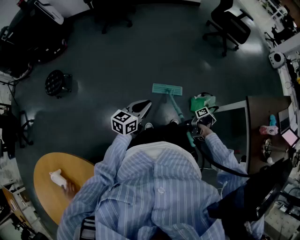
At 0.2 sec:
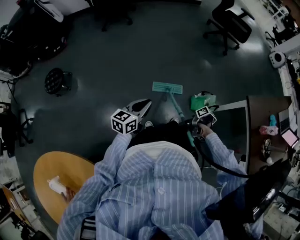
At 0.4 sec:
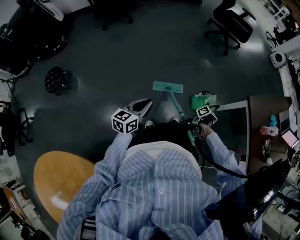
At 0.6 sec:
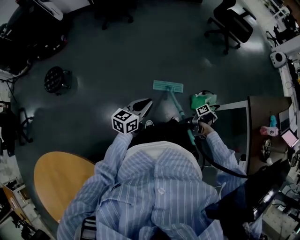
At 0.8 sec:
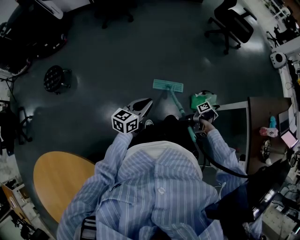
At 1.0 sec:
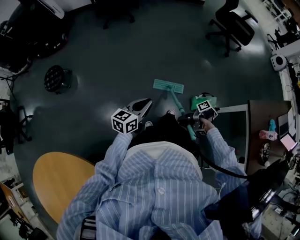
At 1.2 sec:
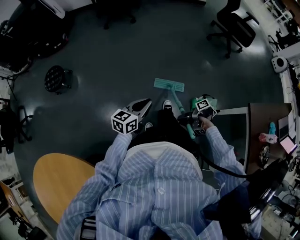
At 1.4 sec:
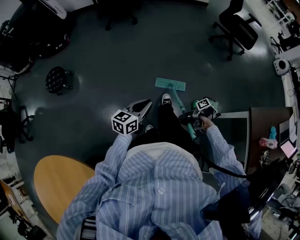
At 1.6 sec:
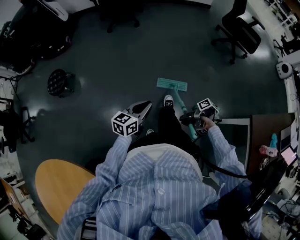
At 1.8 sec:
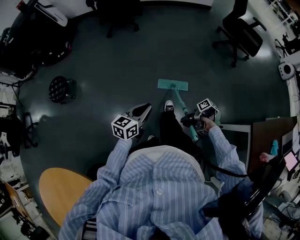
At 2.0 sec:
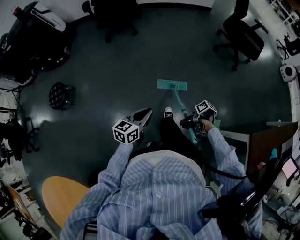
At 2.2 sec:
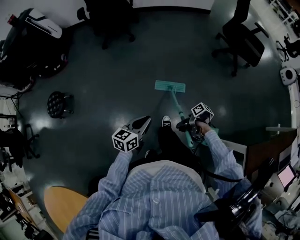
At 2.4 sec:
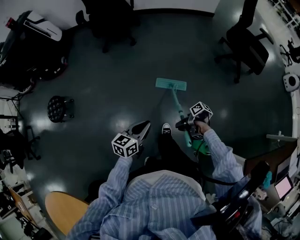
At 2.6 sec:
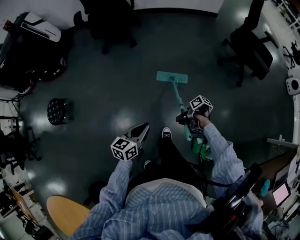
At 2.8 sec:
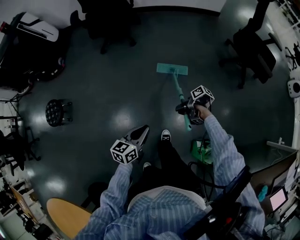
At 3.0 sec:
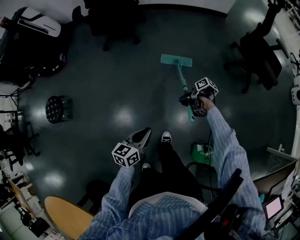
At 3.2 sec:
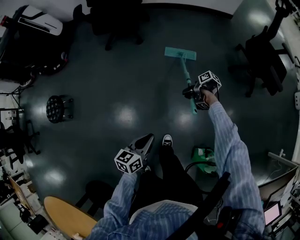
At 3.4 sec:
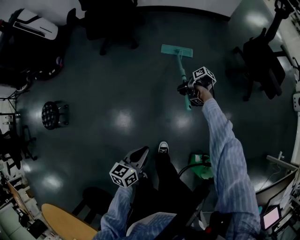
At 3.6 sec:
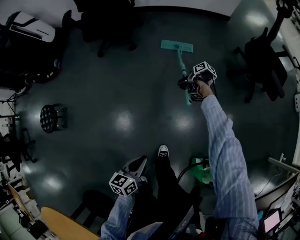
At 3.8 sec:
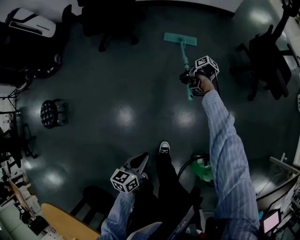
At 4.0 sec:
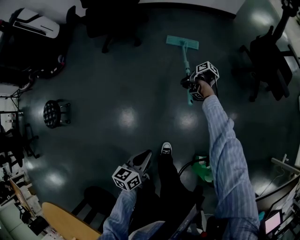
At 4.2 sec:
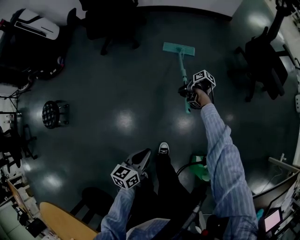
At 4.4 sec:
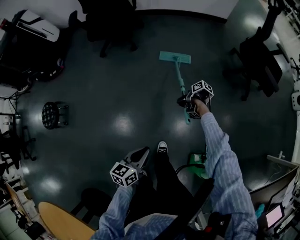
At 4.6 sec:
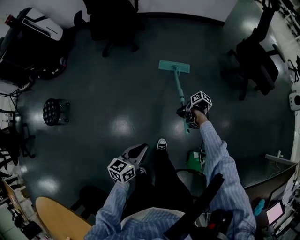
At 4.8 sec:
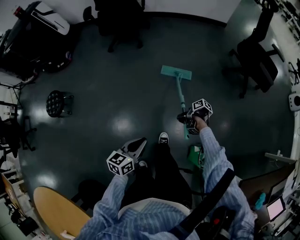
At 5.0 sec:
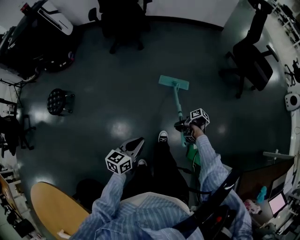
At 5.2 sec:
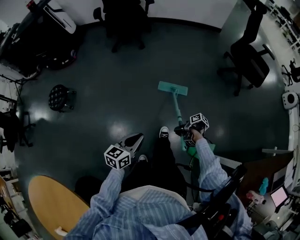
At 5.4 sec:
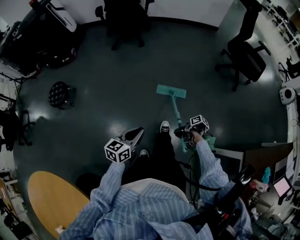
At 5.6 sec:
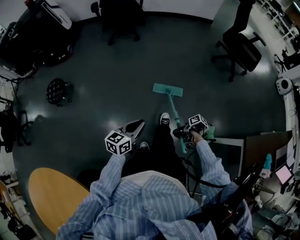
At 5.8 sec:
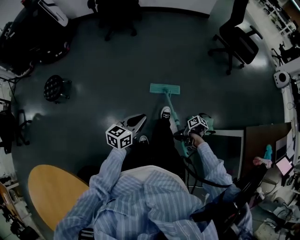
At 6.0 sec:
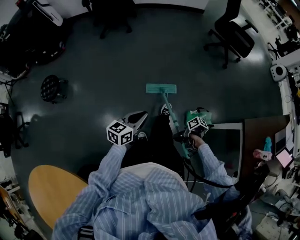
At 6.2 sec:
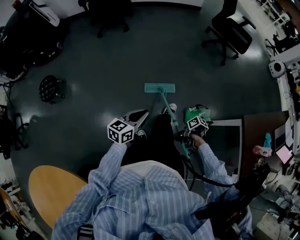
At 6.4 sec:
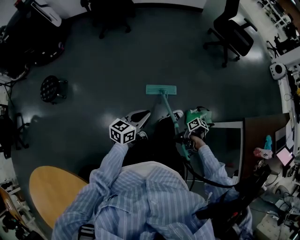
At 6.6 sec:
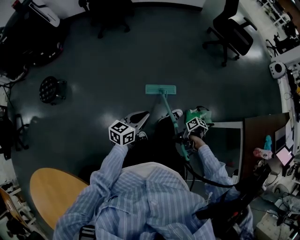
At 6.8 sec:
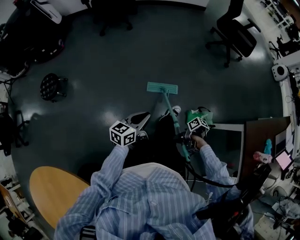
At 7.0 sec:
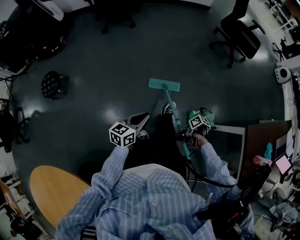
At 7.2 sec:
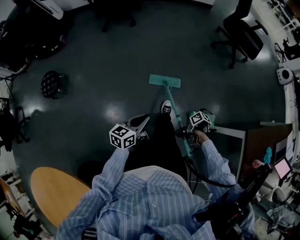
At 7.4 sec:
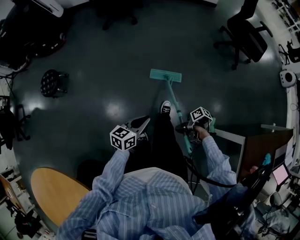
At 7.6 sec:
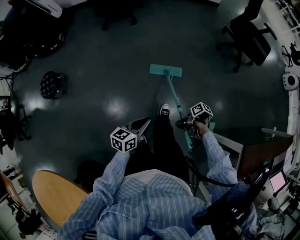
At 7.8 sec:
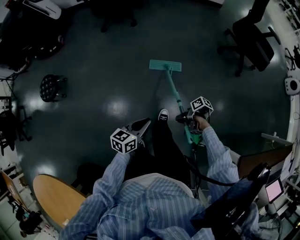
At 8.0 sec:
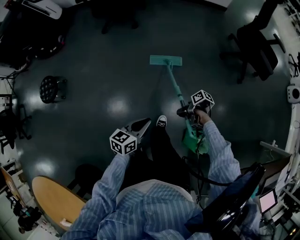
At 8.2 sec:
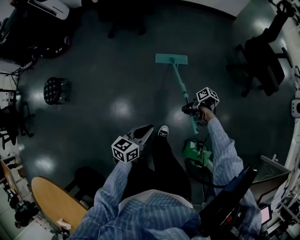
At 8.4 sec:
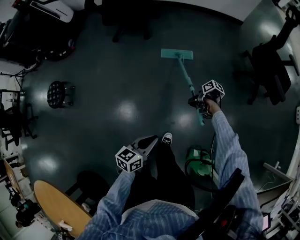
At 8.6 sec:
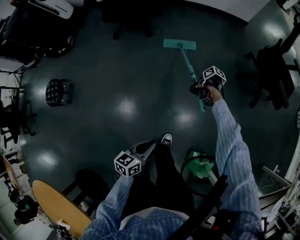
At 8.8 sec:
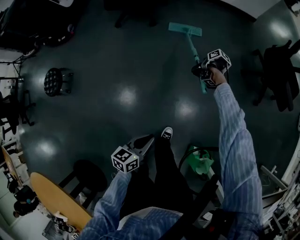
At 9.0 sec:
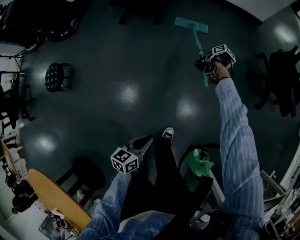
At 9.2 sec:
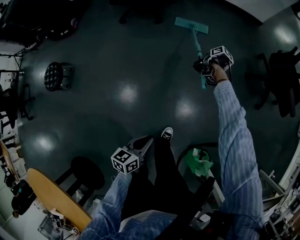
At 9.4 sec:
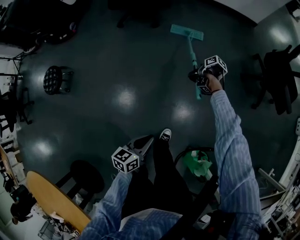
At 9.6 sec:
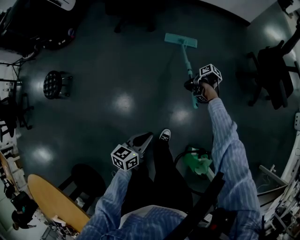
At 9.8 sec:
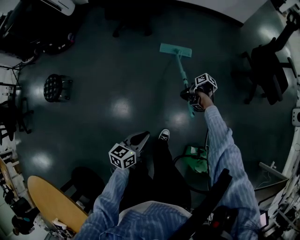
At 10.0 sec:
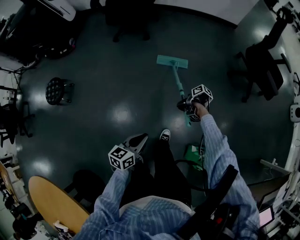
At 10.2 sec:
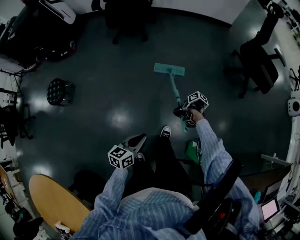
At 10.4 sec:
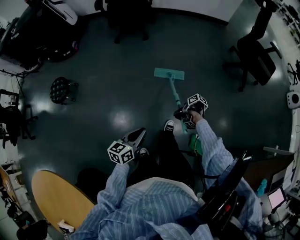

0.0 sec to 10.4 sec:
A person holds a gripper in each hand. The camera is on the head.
0.0 sec to 1.4 sec: The left gripper shifts by approximately 5 cm.
1.4 sec to 3.0 sec: The left gripper moves roughly 40 cm.
4.4 sec to 6.0 sec: The left gripper ends up roughly 35 cm from where it was.
6.0 sec to 7.4 sec: The left gripper shifts by some 10 cm.
7.4 sec to 9.0 sec: The left gripper shifts by approximately 30 cm.
9.0 sec to 10.4 sec: The left gripper ends up about 25 cm from where it was.

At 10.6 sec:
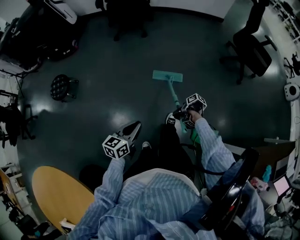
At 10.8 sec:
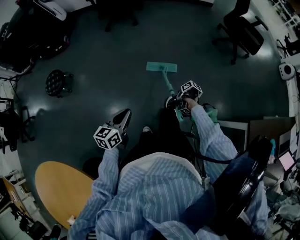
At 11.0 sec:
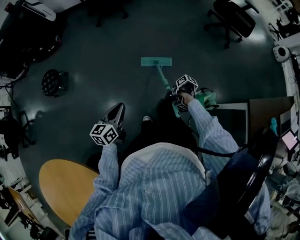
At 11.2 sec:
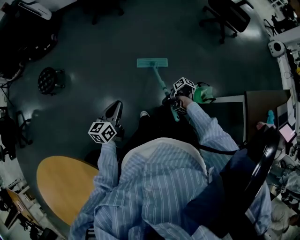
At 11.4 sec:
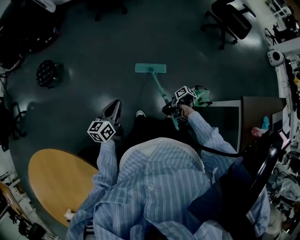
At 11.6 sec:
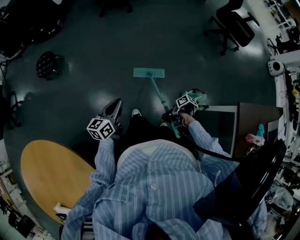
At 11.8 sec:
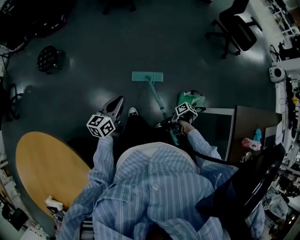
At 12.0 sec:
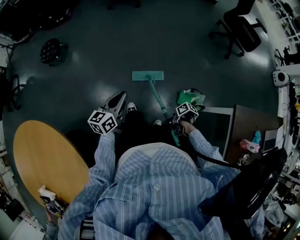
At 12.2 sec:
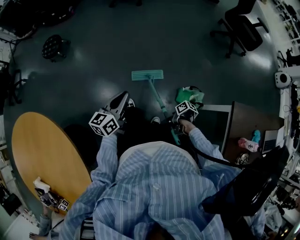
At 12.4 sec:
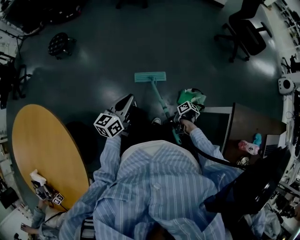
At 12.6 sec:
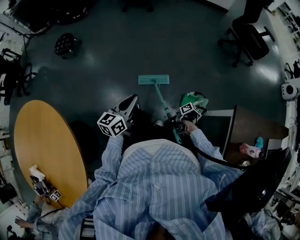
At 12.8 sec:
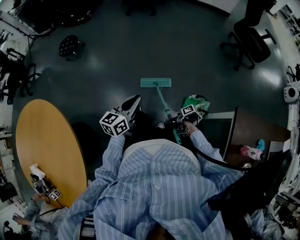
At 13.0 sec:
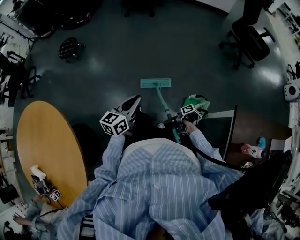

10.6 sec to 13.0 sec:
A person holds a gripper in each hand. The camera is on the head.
10.6 sec to 11.8 sec: The left gripper ends up roughly 15 cm from where it was.
11.8 sec to 13.0 sec: The left gripper moves about 20 cm.

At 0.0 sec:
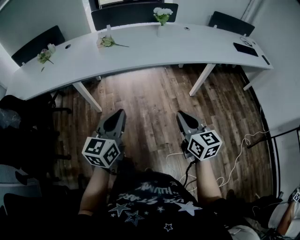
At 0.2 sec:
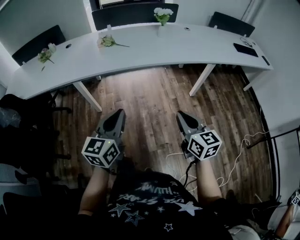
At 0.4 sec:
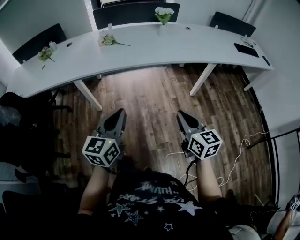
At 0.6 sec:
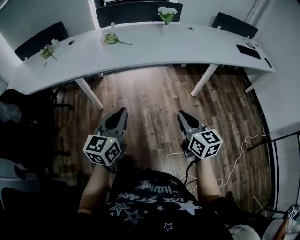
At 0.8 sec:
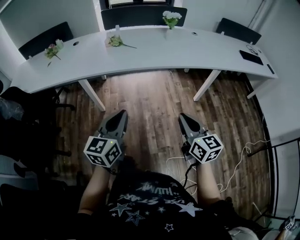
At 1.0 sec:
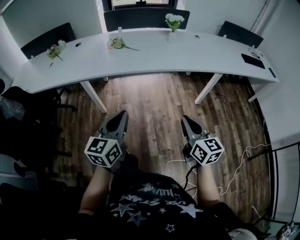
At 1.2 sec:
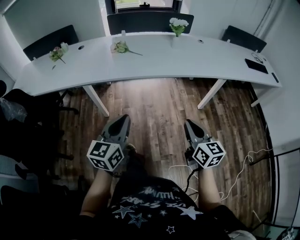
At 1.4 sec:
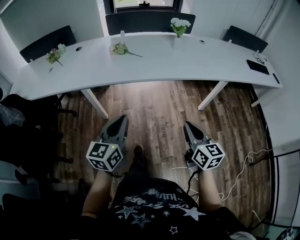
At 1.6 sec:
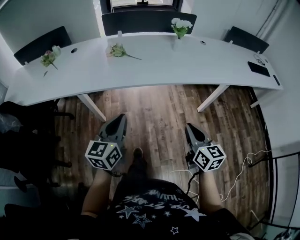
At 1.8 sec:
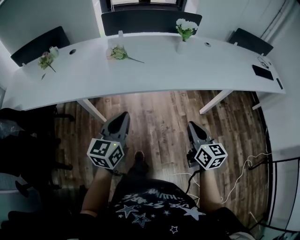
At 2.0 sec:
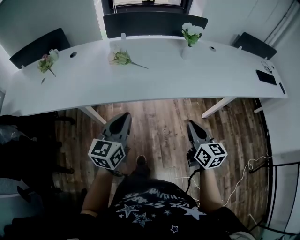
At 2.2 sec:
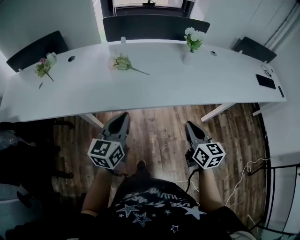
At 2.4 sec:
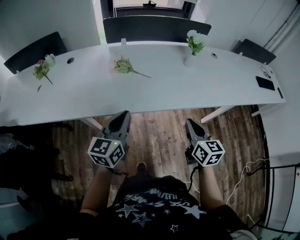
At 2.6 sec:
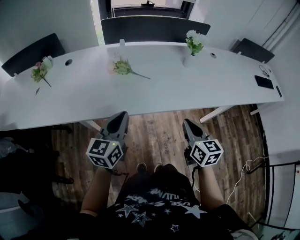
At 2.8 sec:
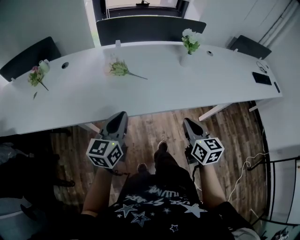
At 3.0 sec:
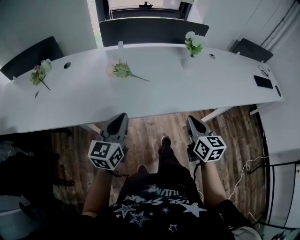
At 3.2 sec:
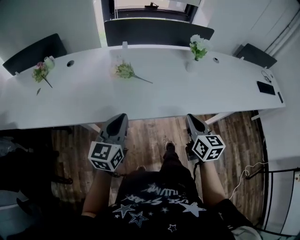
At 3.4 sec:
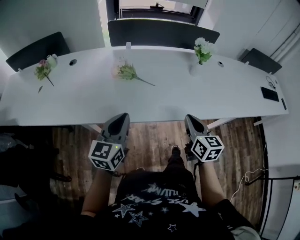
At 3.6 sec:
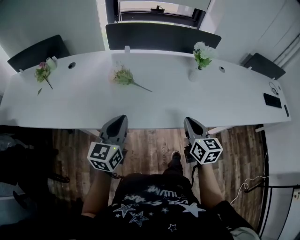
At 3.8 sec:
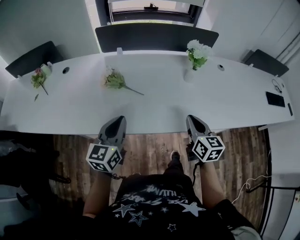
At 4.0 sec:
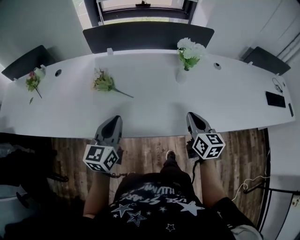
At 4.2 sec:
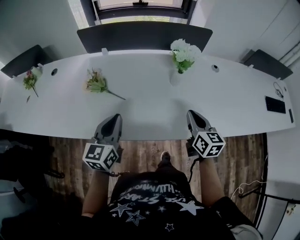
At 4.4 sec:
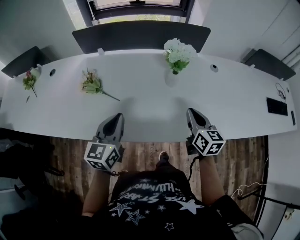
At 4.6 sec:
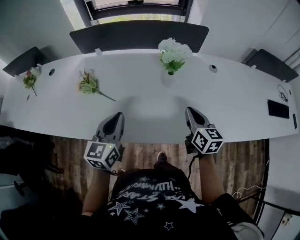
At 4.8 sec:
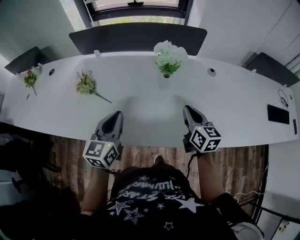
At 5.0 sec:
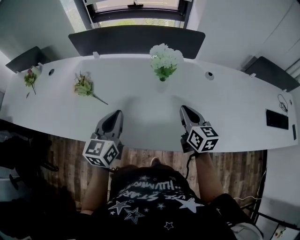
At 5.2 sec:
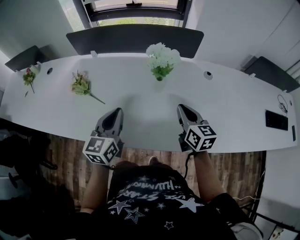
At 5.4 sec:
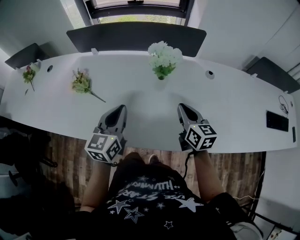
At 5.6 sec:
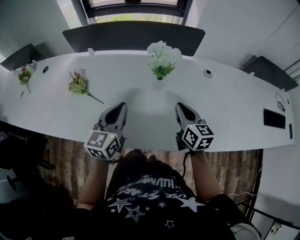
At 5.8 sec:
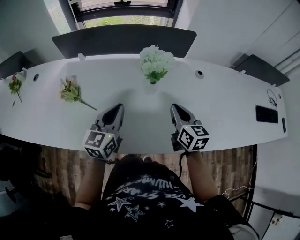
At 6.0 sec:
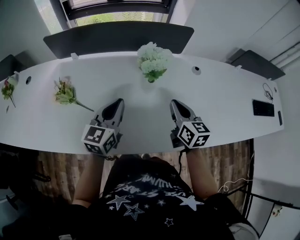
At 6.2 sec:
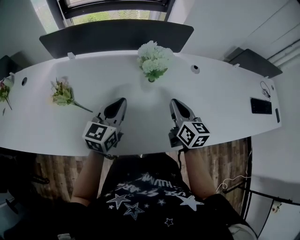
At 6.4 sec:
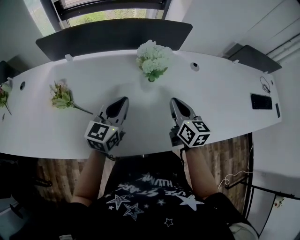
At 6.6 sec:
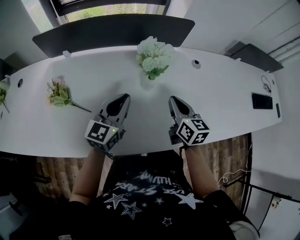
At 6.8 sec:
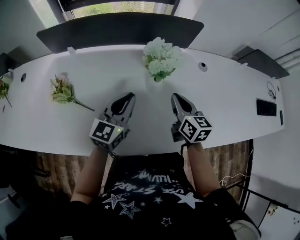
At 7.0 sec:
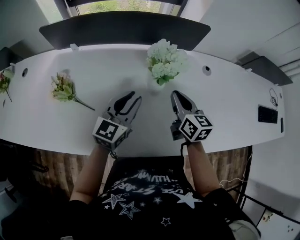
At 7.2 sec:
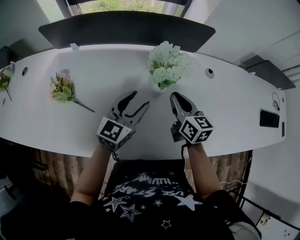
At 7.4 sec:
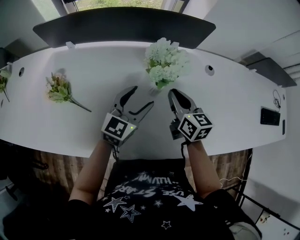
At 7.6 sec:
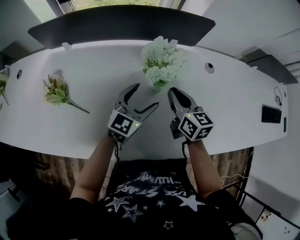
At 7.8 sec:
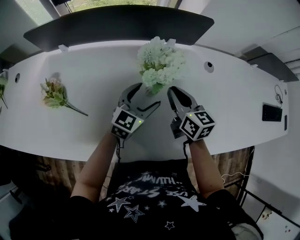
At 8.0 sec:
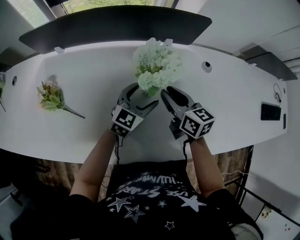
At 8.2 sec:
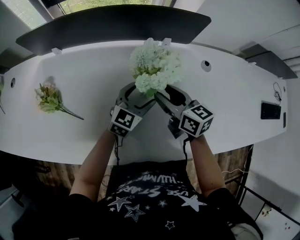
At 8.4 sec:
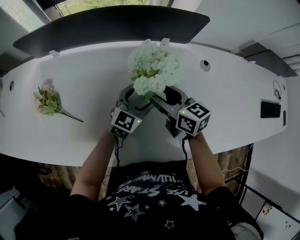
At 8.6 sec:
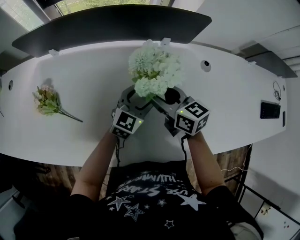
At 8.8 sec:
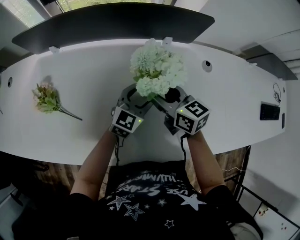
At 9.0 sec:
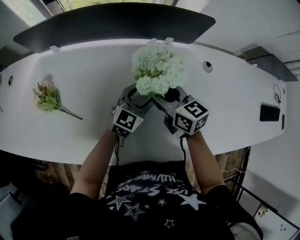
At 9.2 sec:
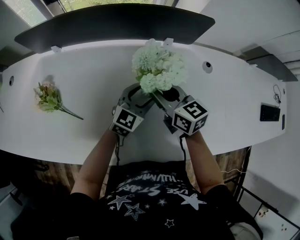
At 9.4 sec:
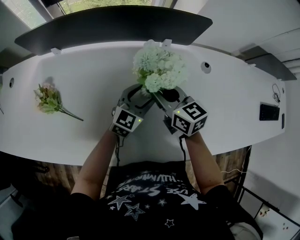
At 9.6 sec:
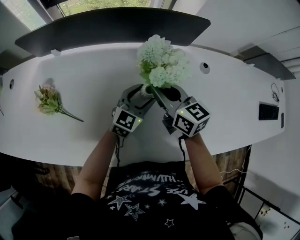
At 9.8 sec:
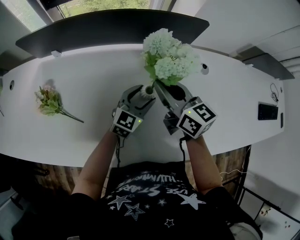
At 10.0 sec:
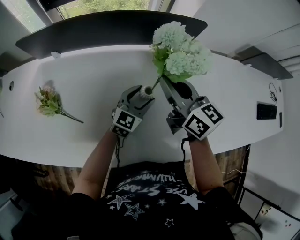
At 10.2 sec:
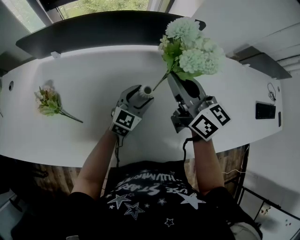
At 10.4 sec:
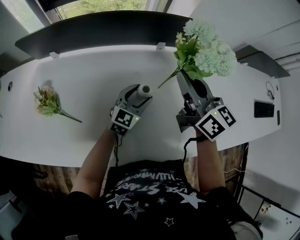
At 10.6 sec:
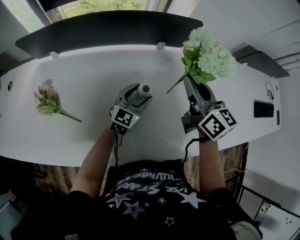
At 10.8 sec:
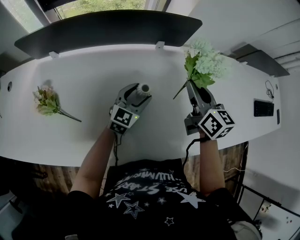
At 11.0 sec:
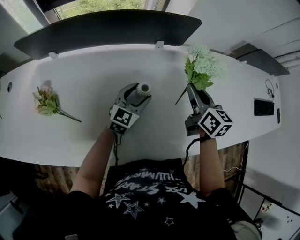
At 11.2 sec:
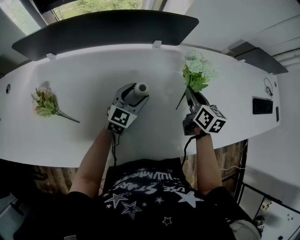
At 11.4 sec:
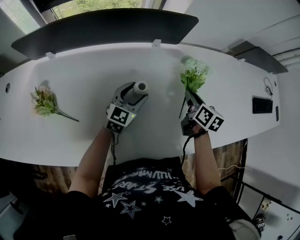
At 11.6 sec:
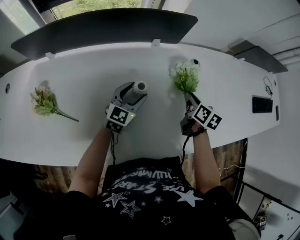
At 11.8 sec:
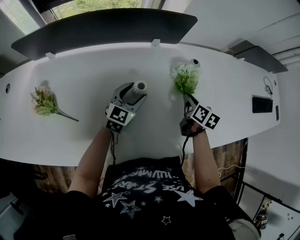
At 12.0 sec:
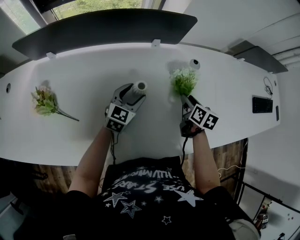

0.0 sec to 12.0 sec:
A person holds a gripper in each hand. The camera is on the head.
0.0 sec to 1.6 sec: The right gripper goes about 10 cm forward; the left gripper moves forward and to the left, some 15 cm.
1.6 sec to 3.0 sec: Both grippers travel together forward, roughly 20 cm.
3.0 sec to 4.4 sec: The right gripper shifts some 30 cm forward and to the right. The left gripper moves to the right and forward, approximately 25 cm.
4.4 sec to 6.0 sec: The left gripper travels forward and to the right by roughly 15 cm; the right gripper moves forward, about 10 cm.
6.0 sec to 7.6 sec: The right gripper heads forward, covering about 10 cm. The left gripper shifts some 15 cm to the right, forward and downward, and opens up.
7.6 sec to 9.0 sec: The right gripper moves some 5 cm, and opens. Meanwhile the left gripper changes place by roughly 5 cm.
9.0 sec to 10.4 sec: The right gripper moves upward, some 15 cm, changes its angle by approximately 20 degrees, and closes up.
10.4 sec to 12.0 sec: The right gripper goes about 30 cm downward and to the right, and tilts its fingers roughly 40 degrees downward.
